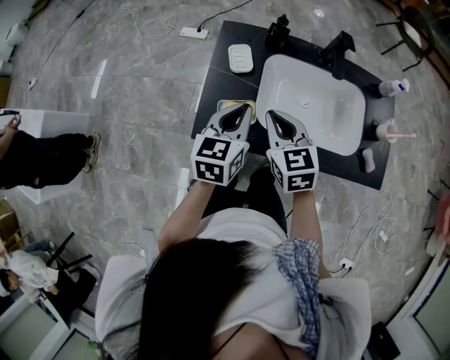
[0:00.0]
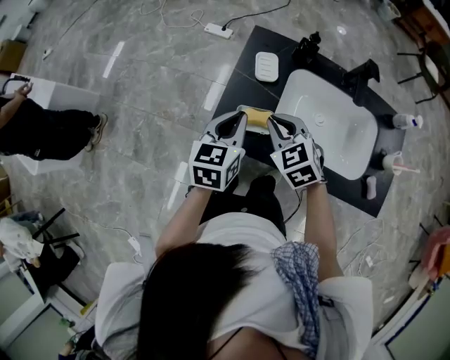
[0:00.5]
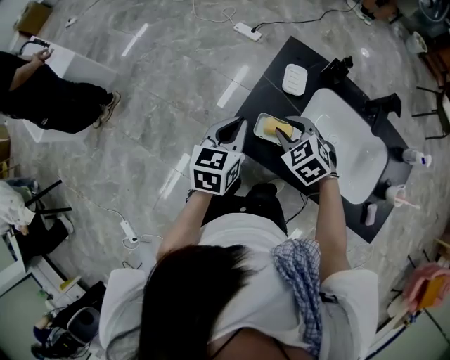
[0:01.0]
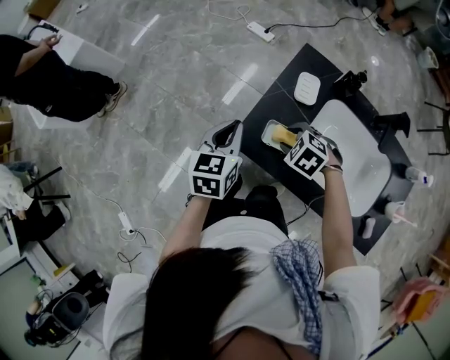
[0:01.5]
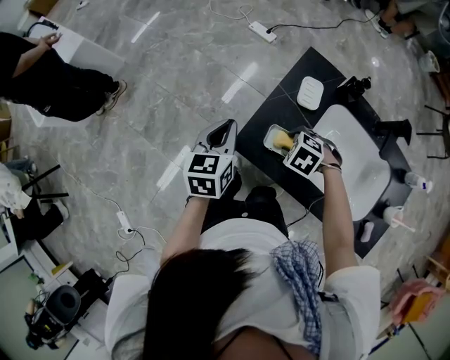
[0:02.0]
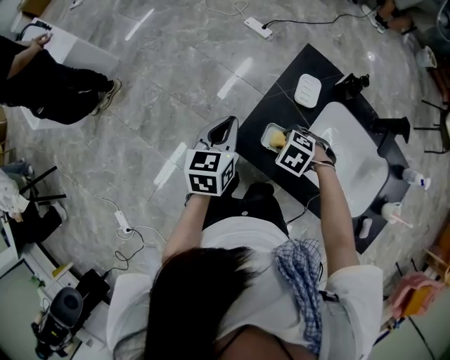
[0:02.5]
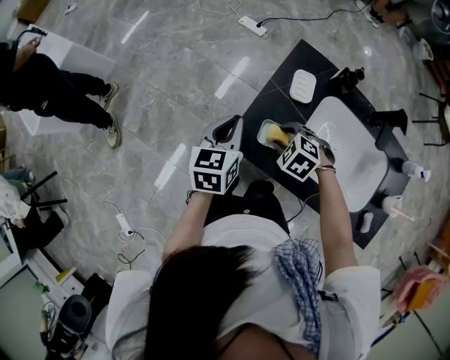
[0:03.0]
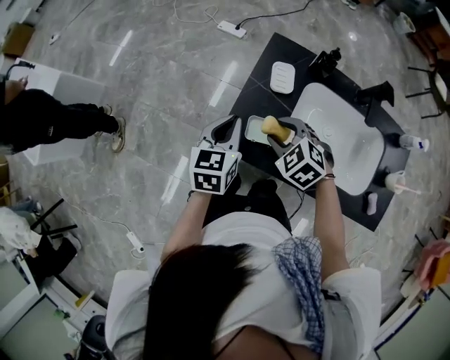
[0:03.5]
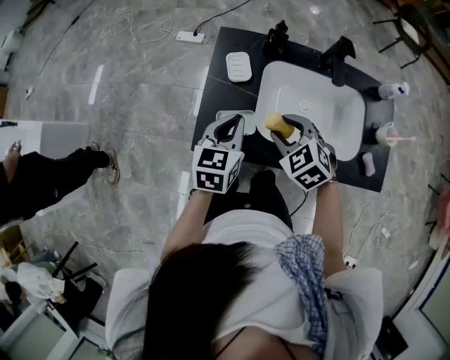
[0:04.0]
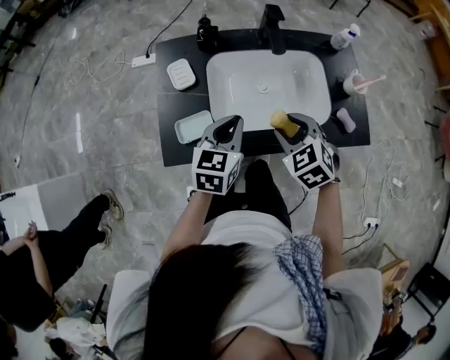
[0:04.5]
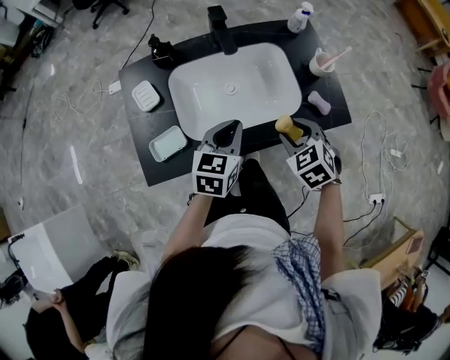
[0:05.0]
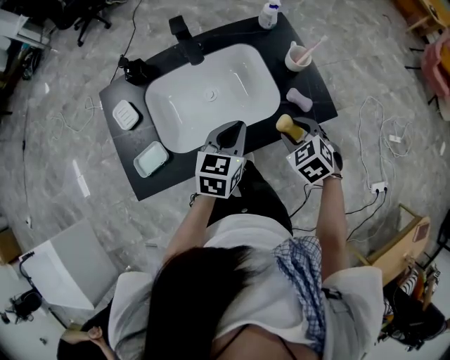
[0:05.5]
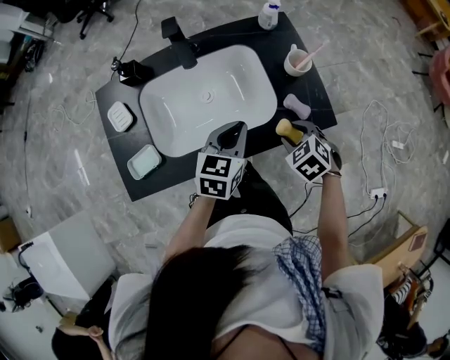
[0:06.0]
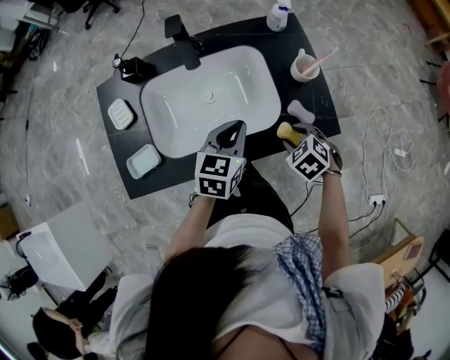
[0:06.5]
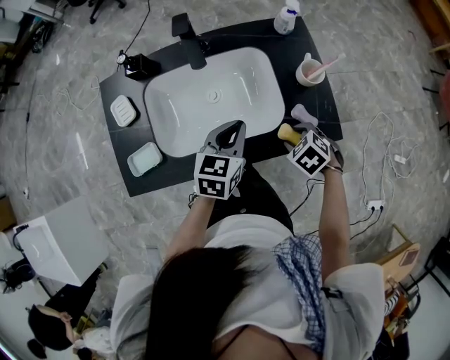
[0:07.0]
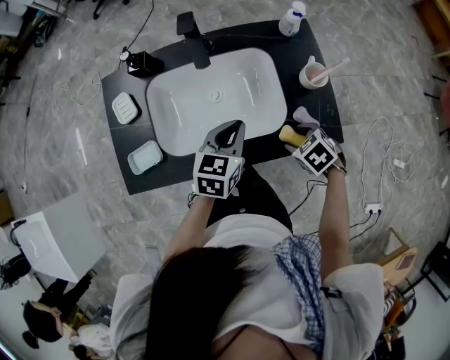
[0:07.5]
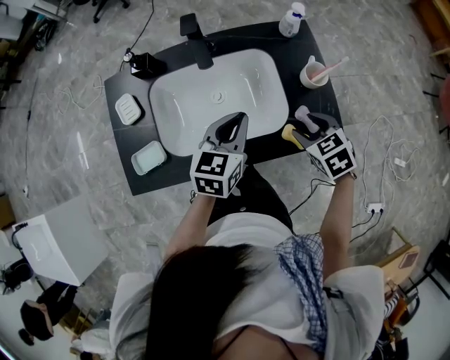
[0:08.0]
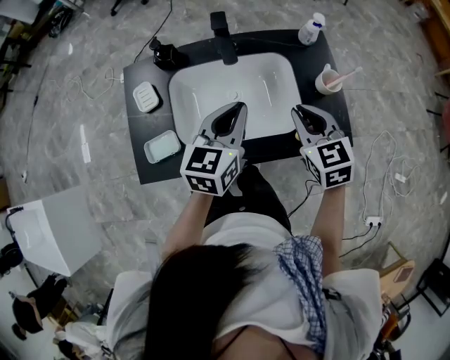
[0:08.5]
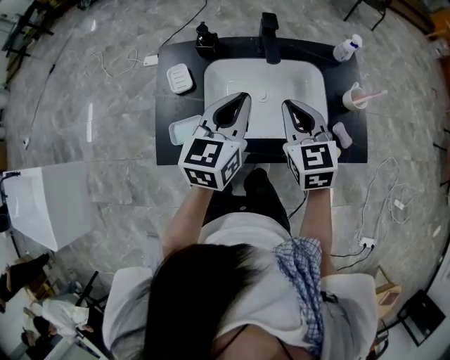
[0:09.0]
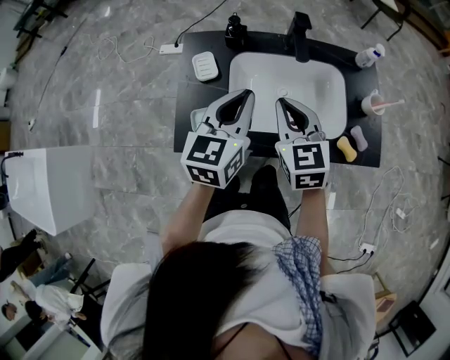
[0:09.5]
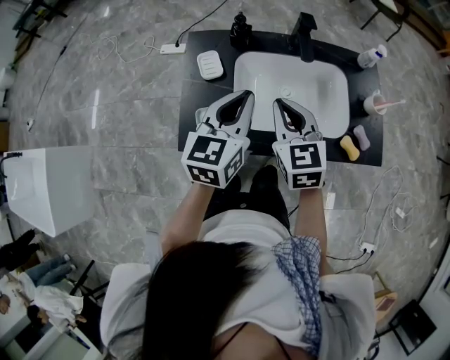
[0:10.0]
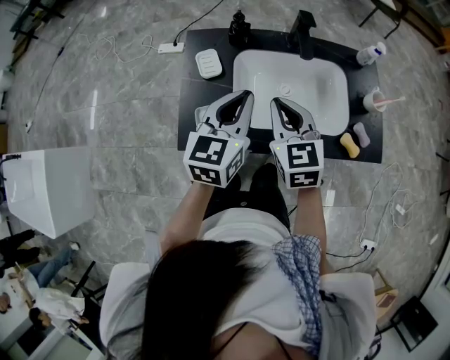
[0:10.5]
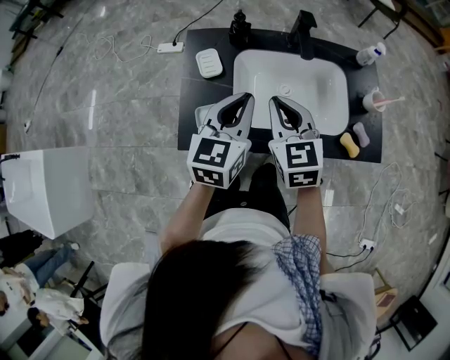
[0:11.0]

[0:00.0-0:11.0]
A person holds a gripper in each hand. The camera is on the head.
0:00.0 to 0:02.0: The right gripper goes roughly 15 cm downward, tips its fingers downward by approximately 50 degrees, and opens, while the left gripper shifts by some 20 cm, and turns by approximately 30 degrees.
0:02.0 to 0:03.5: The left gripper ends up about 10 cm from where it was. The right gripper heads upward, covering approximately 10 cm, and turns by approximately 30 degrees.
0:03.5 to 0:05.5: The pair of grippers is taken roughly 40 cm. The left gripper swivels roughly 50 degrees. The right gripper changes its angle by approximately 60 degrees.
0:05.5 to 0:07.5: The left gripper moves approximately 5 cm. The right gripper is displaced downward by some 10 cm, and swivels roughly 20 degrees.
0:07.5 to 0:09.0: Both grippers travel together to the left and upward, about 25 cm. The right gripper tips its fingers upward by approximately 50 degrees, and closes, while the left gripper turns by about 20 degrees.
0:09.0 to 0:11.0: Both grippers travel together to the left, approximately 10 cm.

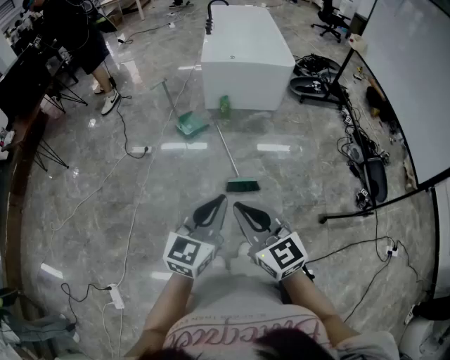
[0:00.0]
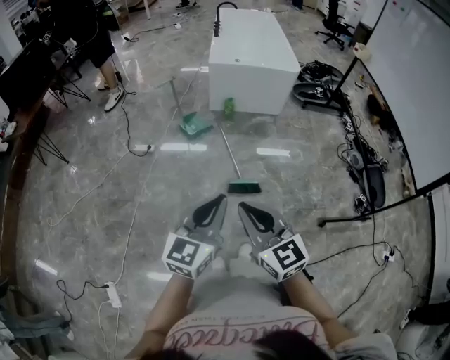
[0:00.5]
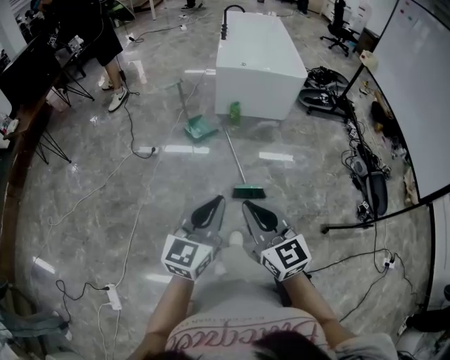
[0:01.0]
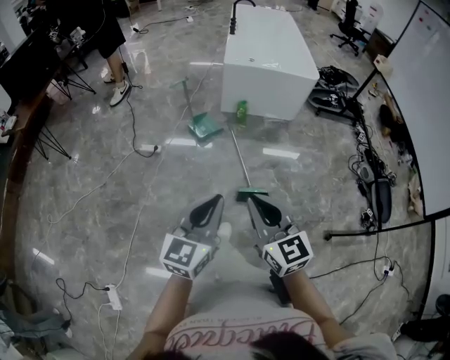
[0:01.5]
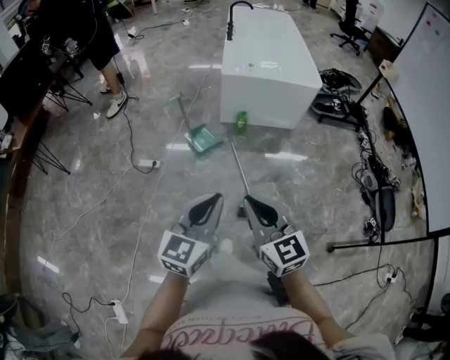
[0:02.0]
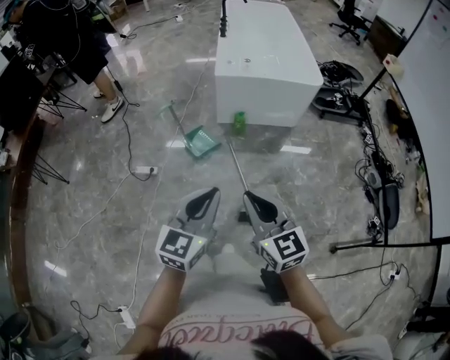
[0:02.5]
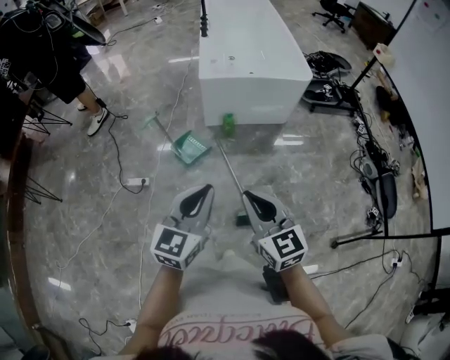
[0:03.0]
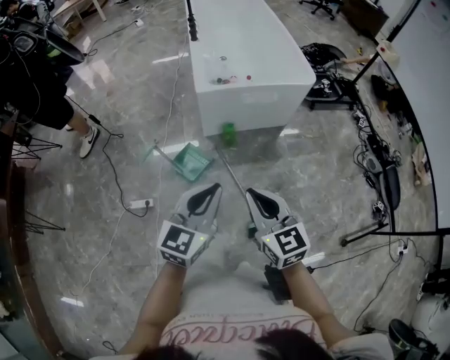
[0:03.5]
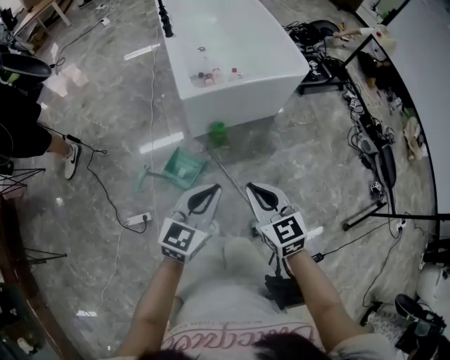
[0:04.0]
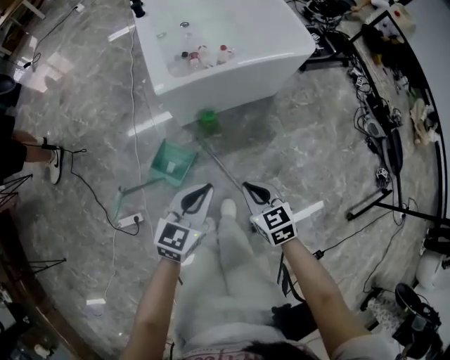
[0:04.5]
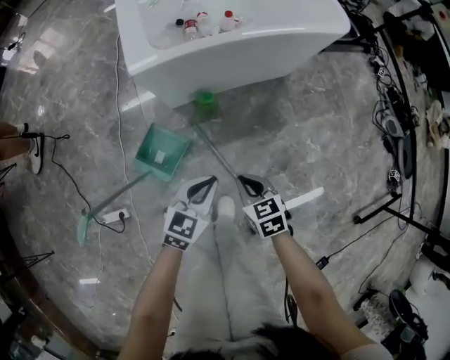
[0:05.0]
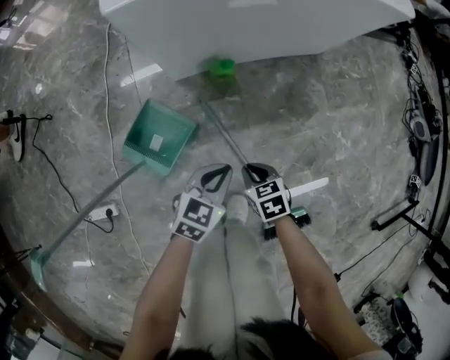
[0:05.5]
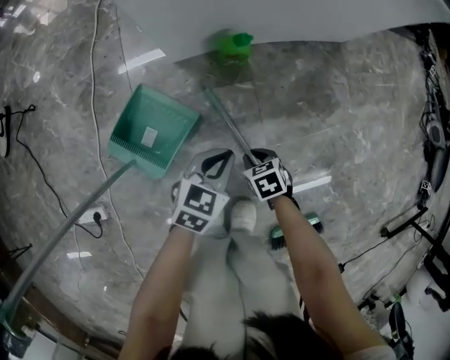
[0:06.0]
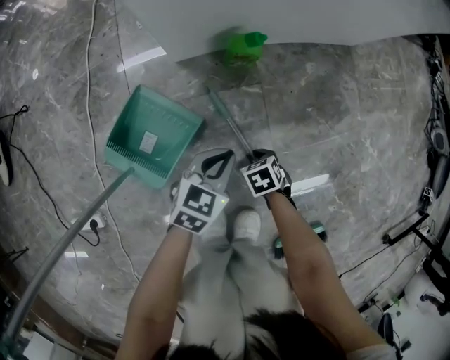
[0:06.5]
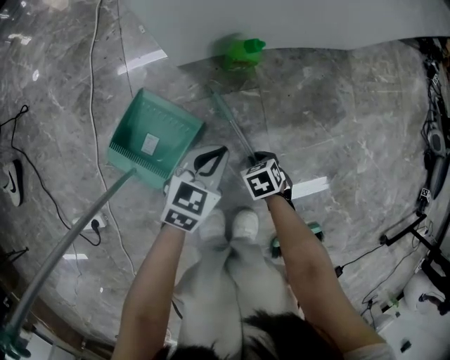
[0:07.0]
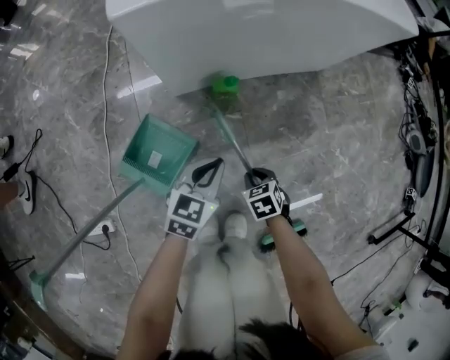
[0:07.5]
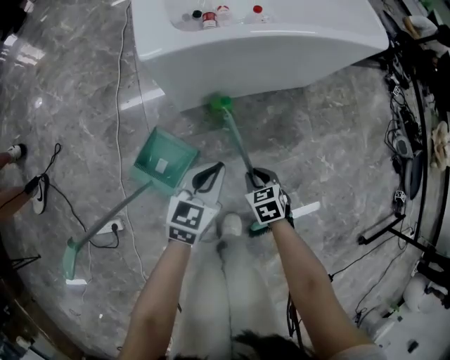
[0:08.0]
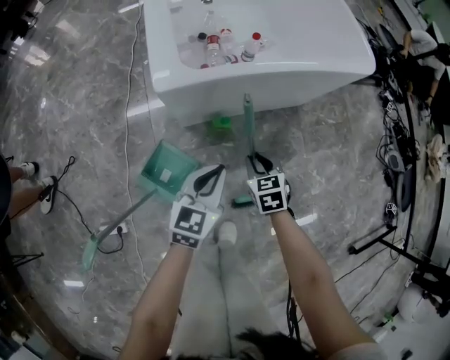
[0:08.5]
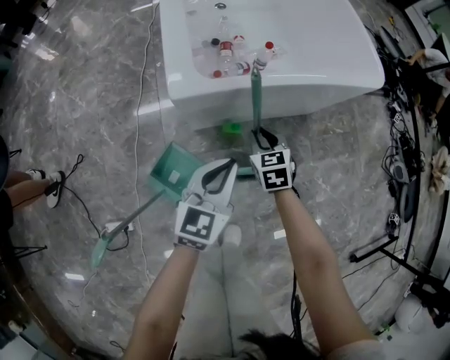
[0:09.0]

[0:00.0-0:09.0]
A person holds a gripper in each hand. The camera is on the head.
0:00.0 to 0:02.0: The left gripper shifts approximately 20 cm forward and to the left; the right gripper shifts approximately 20 cm forward.
0:02.0 to 0:04.5: The grippers both shift forward and downward by roughly 40 cm. The left gripper changes its angle by roughly 30 degrees; the right gripper angles its fingers downward, by some 30 degrees.
0:04.5 to 0:07.0: Both grippers travel together downward, some 50 cm. The right gripper points its fingers approximately 40 degrees further downward.
0:07.0 to 0:09.0: Both grippers move upward, roughly 35 cm. The left gripper rotates some 20 degrees. The right gripper points its fingers roughly 30 degrees further upward.

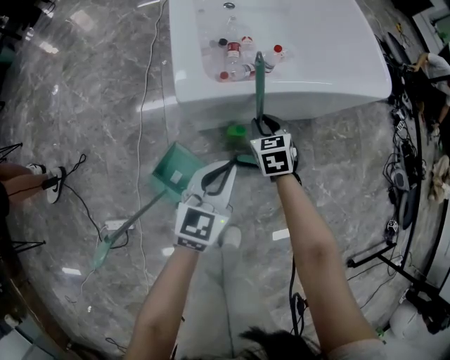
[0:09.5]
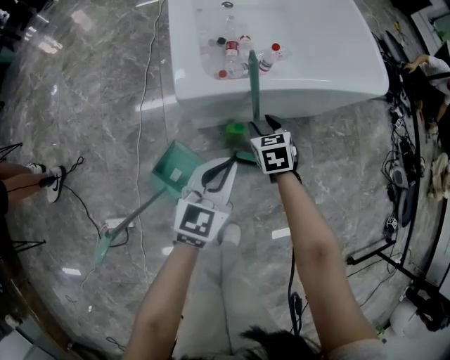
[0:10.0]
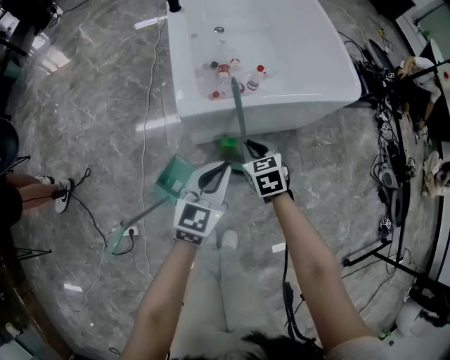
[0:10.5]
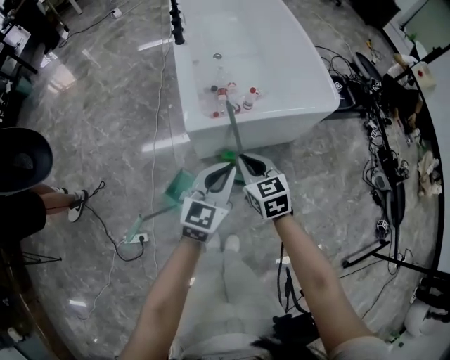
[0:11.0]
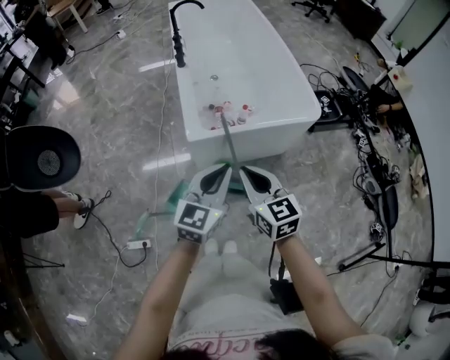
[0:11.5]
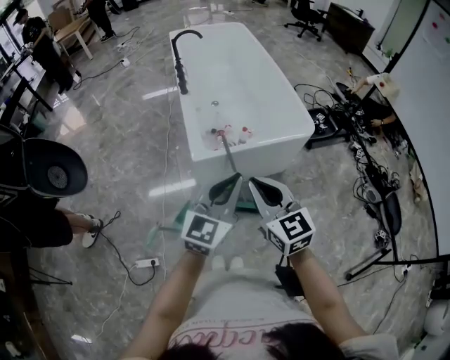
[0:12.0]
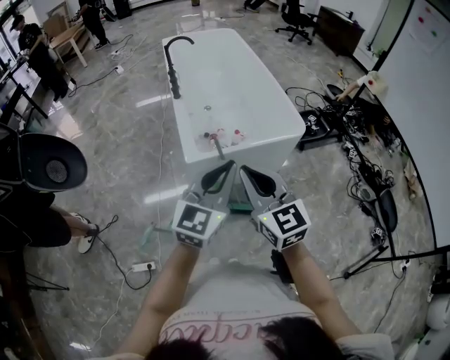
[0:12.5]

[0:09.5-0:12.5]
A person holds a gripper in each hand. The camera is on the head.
0:09.5 to 0:11.0: The left gripper travels upward by about 15 cm. The right gripper moves upward and backward, about 25 cm, and opens, then closes once more.
0:11.0 to 0:12.5: The two grippers go roughly 25 cm upward. The right gripper swivels approximately 30 degrees.

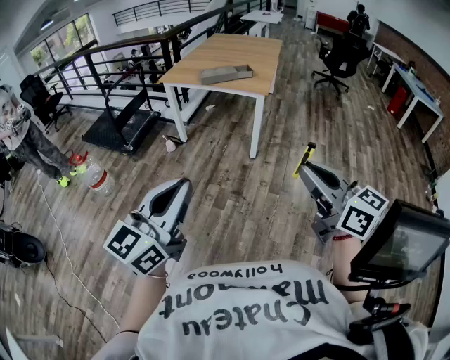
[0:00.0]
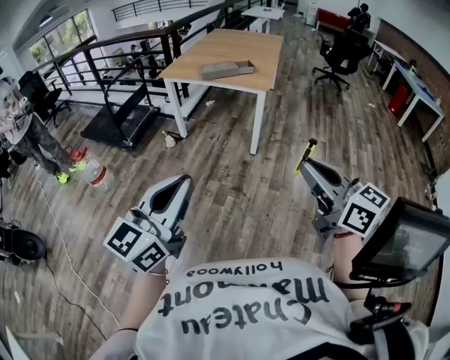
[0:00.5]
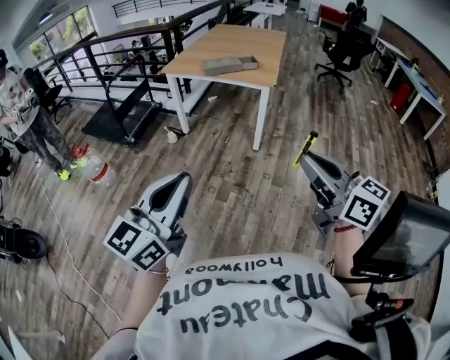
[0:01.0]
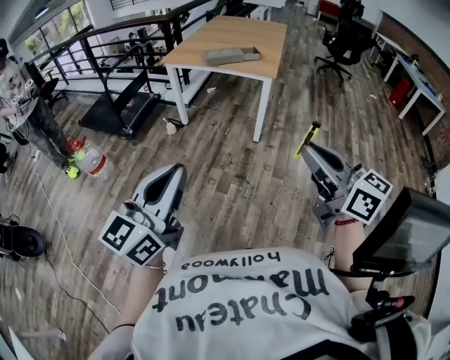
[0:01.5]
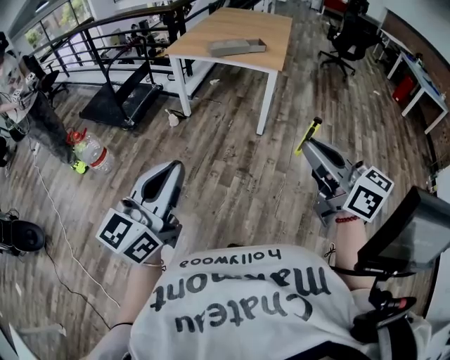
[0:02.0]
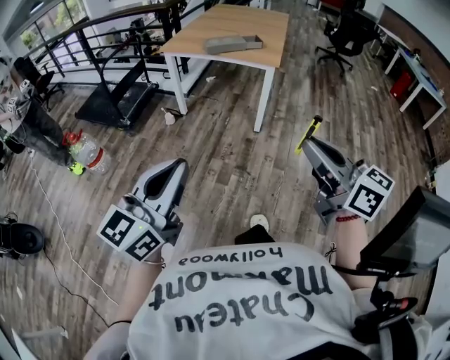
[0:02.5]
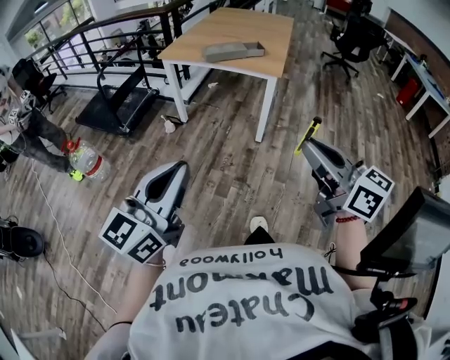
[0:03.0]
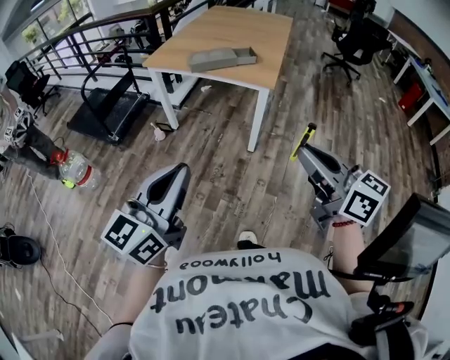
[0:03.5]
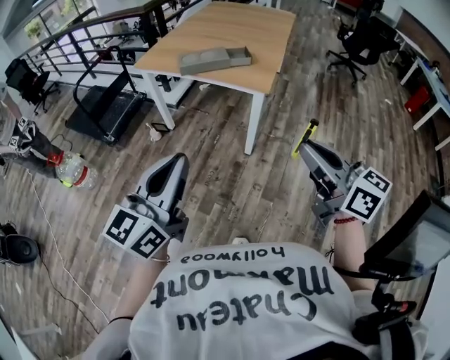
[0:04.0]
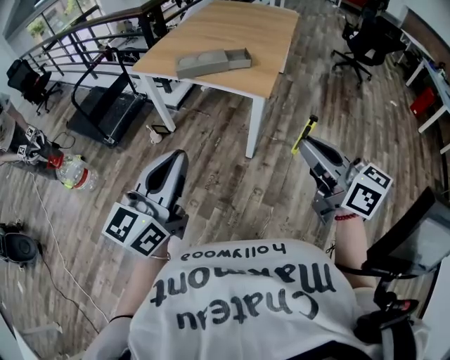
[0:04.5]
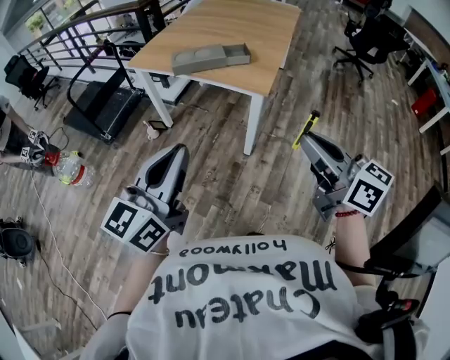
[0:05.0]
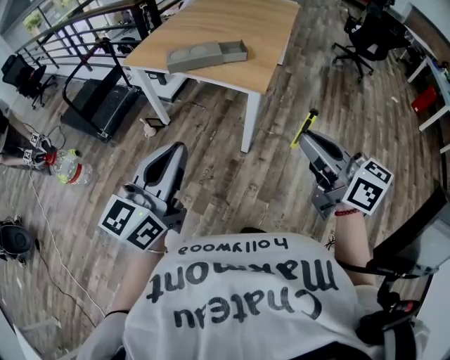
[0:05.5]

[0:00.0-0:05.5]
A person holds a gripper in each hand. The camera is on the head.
0:00.0 to 0:02.0: Both grippers travel together to the left, about 10 cm.
0:02.0 to 0:03.5: Both grippers move forward and to the right, about 25 cm.
0:03.5 to 0:05.5: The two grippers go approximately 20 cm forward and to the right.
